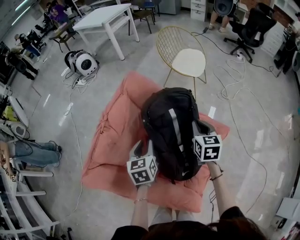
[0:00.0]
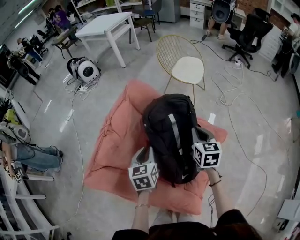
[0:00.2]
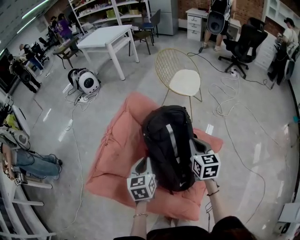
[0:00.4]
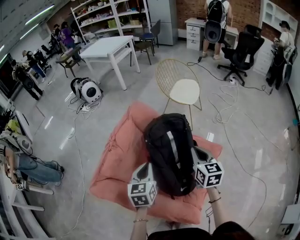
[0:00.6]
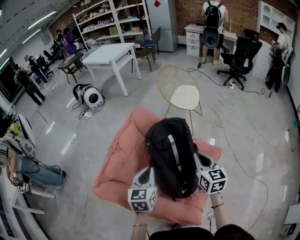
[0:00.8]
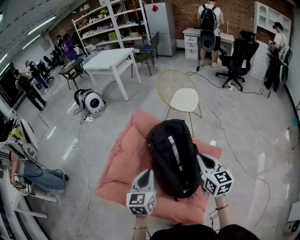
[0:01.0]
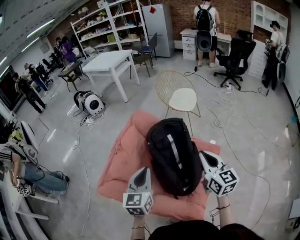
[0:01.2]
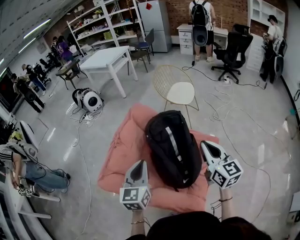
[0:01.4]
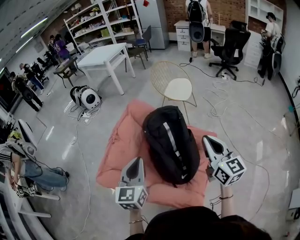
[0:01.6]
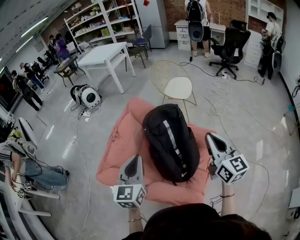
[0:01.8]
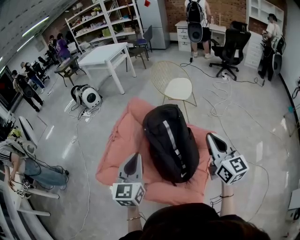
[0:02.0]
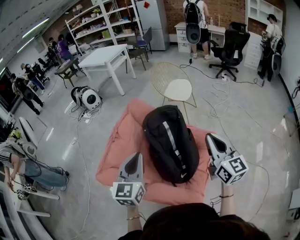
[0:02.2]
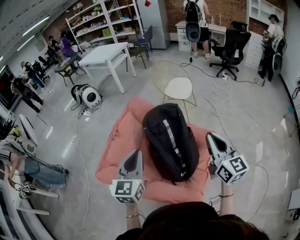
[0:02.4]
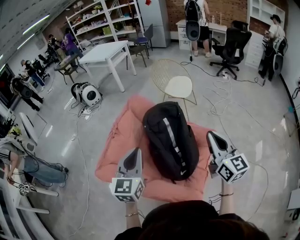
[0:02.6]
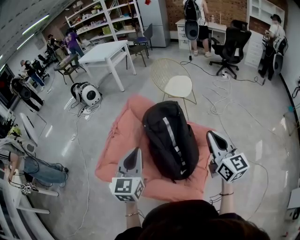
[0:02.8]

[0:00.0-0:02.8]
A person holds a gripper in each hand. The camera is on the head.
0:00.0 to 0:01.4: The two grippers go roughly 25 cm upward and backward. The left gripper turns by some 30 degrees, and closes. Meanwhile the right gripper changes its angle by roughly 30 degrees.
0:01.4 to 0:02.8: The right gripper changes place by some 5 cm.

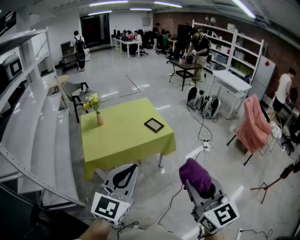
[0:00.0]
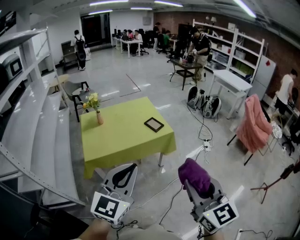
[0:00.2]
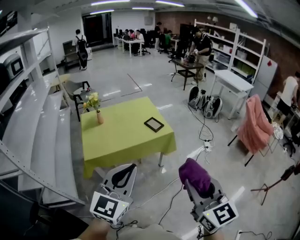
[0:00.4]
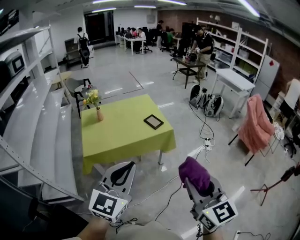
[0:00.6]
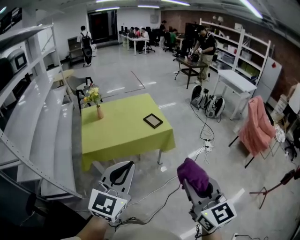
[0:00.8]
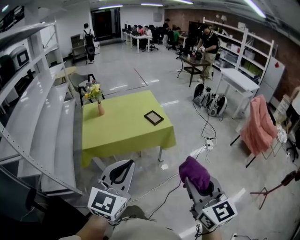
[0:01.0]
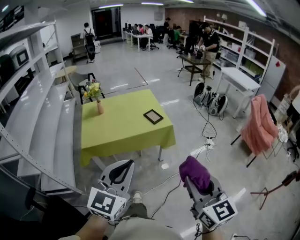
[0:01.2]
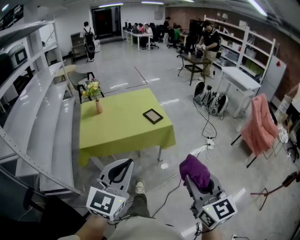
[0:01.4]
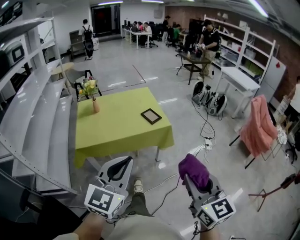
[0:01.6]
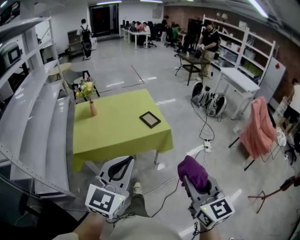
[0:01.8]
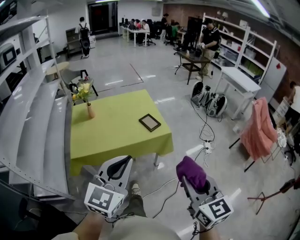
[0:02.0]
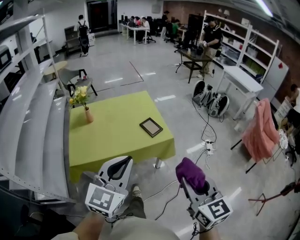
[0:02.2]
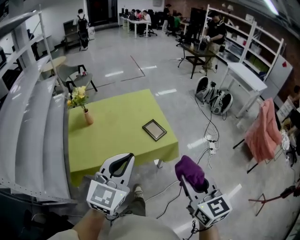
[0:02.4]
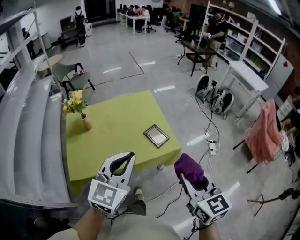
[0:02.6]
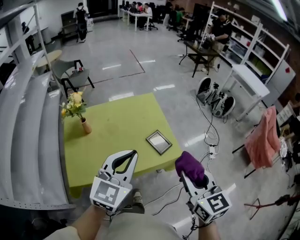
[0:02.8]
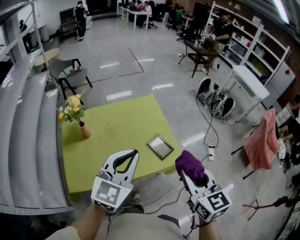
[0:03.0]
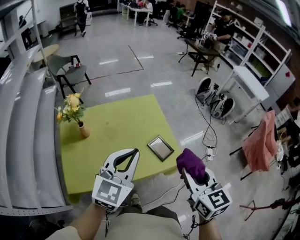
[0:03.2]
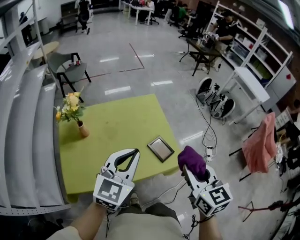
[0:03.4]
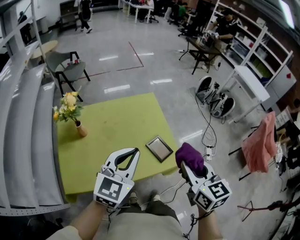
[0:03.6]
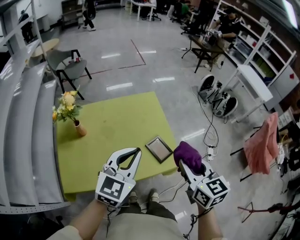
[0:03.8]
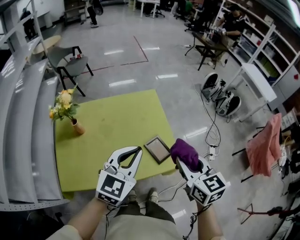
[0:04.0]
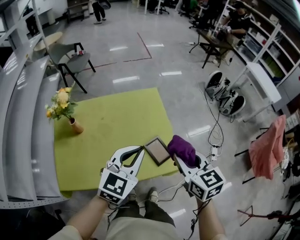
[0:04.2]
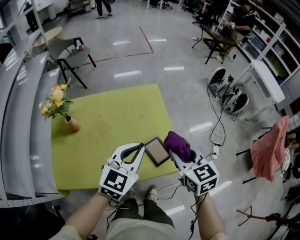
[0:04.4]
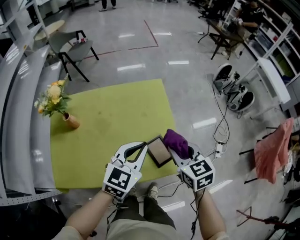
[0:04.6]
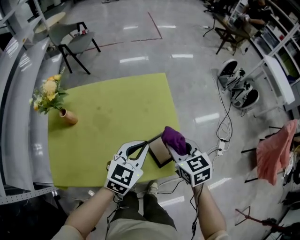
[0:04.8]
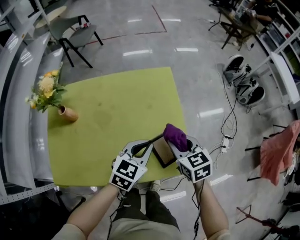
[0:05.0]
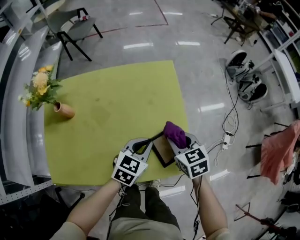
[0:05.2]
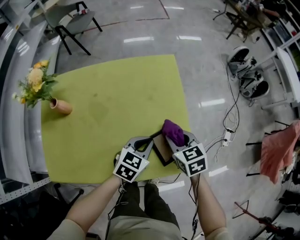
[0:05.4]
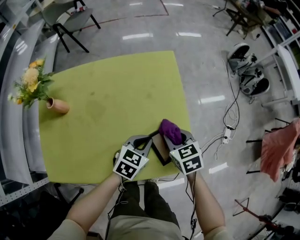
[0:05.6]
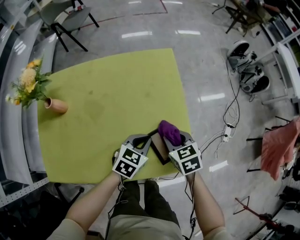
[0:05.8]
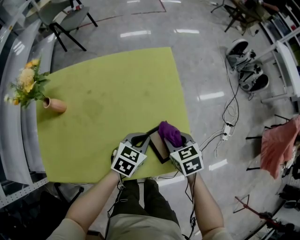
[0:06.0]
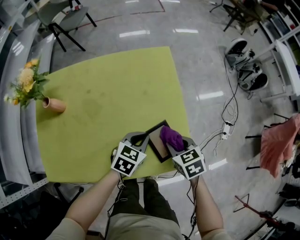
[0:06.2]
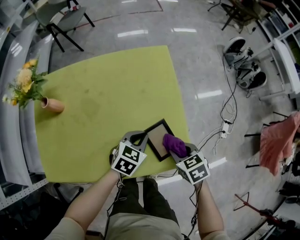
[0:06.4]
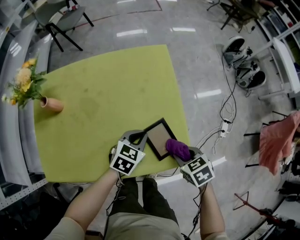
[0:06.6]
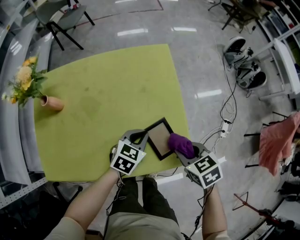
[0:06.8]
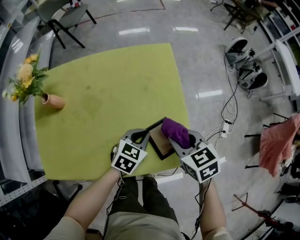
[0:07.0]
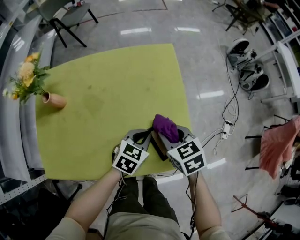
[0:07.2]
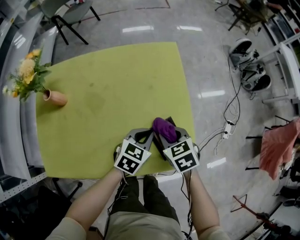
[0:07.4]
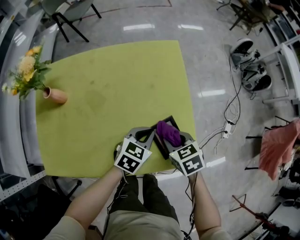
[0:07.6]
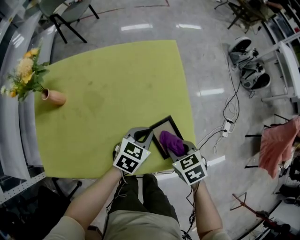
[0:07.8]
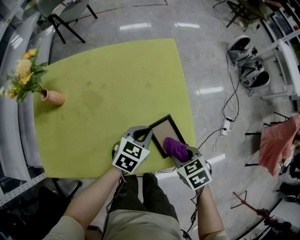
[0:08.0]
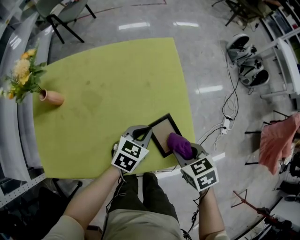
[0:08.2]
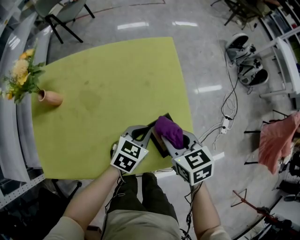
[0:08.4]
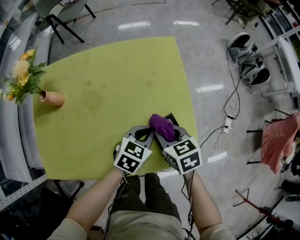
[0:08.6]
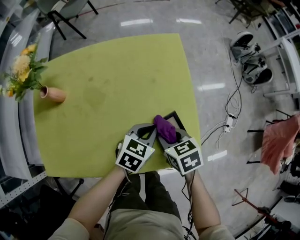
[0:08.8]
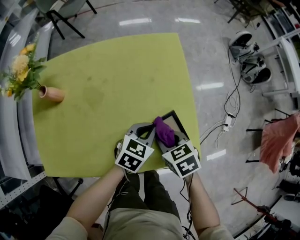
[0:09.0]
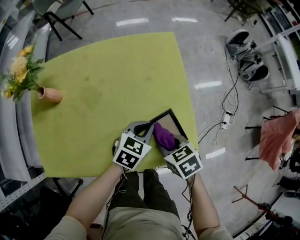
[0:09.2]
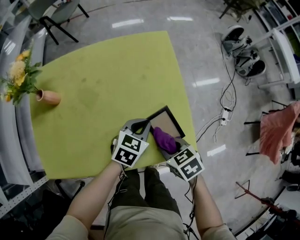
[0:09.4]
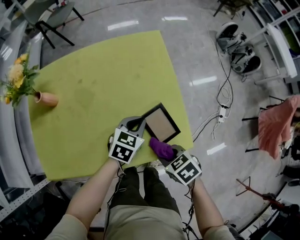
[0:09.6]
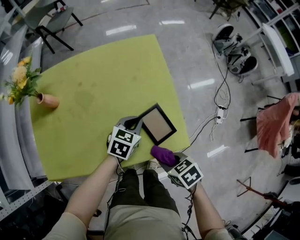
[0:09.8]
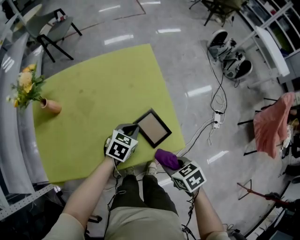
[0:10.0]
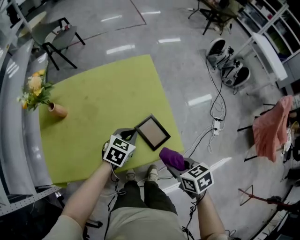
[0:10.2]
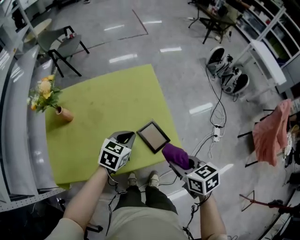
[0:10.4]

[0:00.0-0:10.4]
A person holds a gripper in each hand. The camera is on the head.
0:00.0 to 0:01.4: The left gripper shifts approximately 5 cm to the right; the right gripper is displaced to the right and downward by roughly 10 cm.
0:01.4 to 0:03.0: Both grippers are carried forward, approximately 50 cm.
0:03.0 to 0:04.4: The left gripper travels forward, downward and to the right by about 20 cm; the right gripper travels forward and downward by roughly 25 cm.
0:04.4 to 0:06.0: Both grippers travel together downward, roughly 25 cm. The left gripper turns by some 30 degrees; the right gripper swivels some 30 degrees.
0:06.0 to 0:07.4: The right gripper goes backward and returns, about 10 cm each way.
0:07.4 to 0:09.0: The right gripper moves forward and backward over approximately 10 cm, changing direction 2 times.
0:09.0 to 0:10.4: The right gripper goes approximately 20 cm upward, backward and to the right, and swivels roughly 20 degrees. The left gripper goes some 10 cm upward.

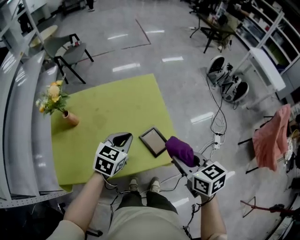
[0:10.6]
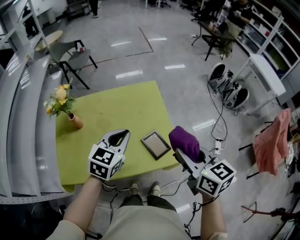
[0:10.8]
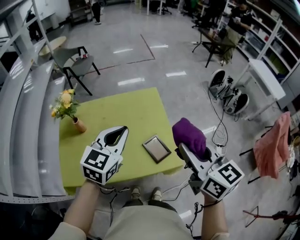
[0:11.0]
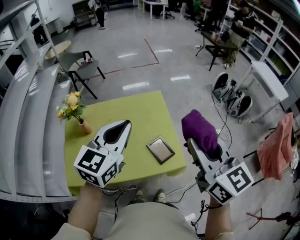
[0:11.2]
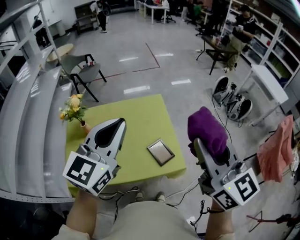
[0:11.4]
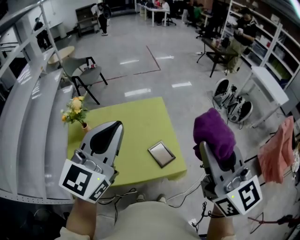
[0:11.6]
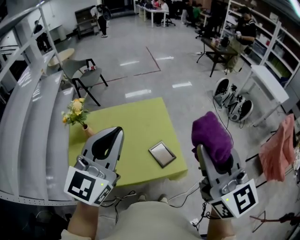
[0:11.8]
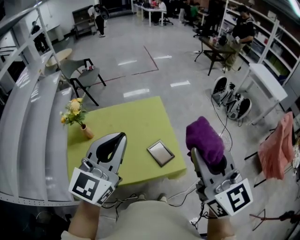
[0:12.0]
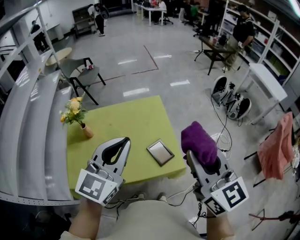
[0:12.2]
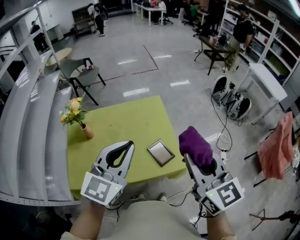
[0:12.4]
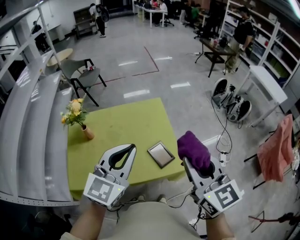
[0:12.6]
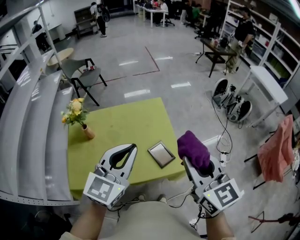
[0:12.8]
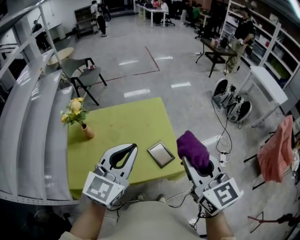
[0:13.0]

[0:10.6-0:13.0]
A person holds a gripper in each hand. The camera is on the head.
0:10.6 to 0:11.8: Both grippers travel together upward, approximately 30 cm. The left gripper tilts its fingers approximately 40 degrees upward, while the right gripper tilts its fingers about 40 degrees upward.
0:11.8 to 0:13.0: The grippers both shift downward by about 10 cm.

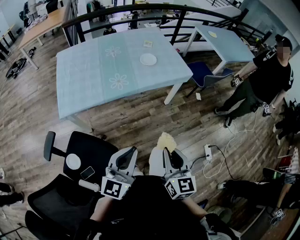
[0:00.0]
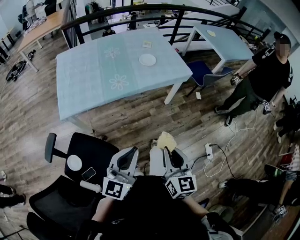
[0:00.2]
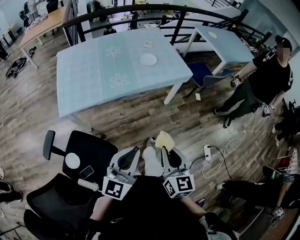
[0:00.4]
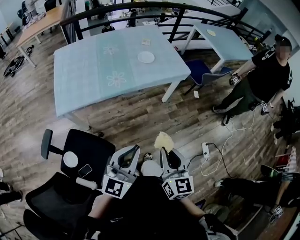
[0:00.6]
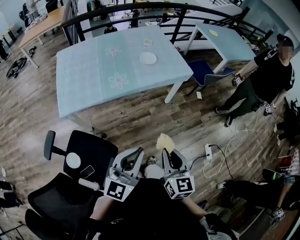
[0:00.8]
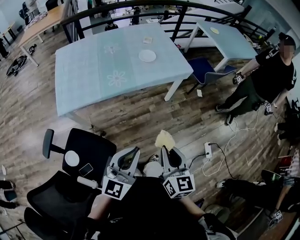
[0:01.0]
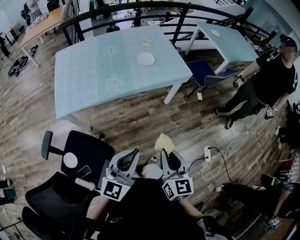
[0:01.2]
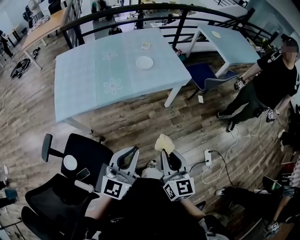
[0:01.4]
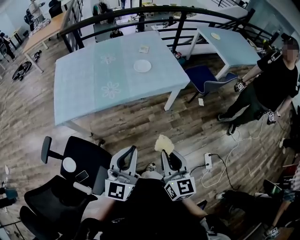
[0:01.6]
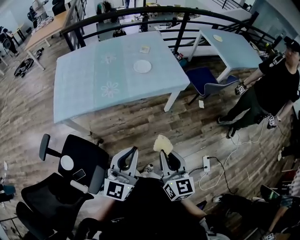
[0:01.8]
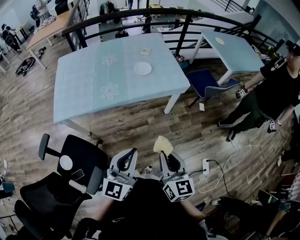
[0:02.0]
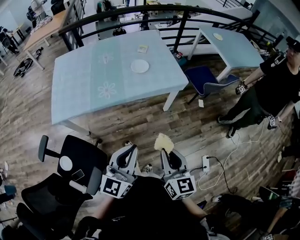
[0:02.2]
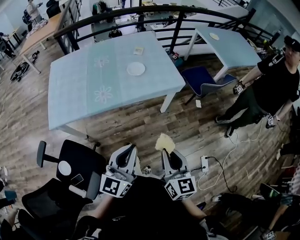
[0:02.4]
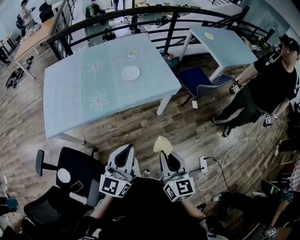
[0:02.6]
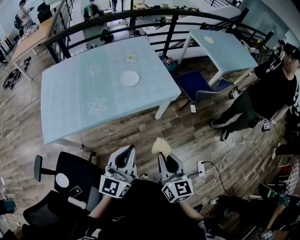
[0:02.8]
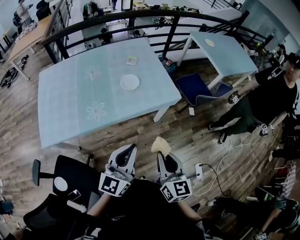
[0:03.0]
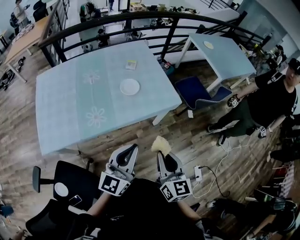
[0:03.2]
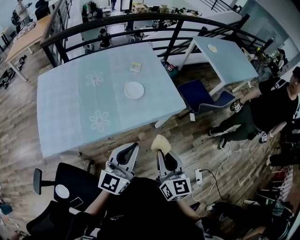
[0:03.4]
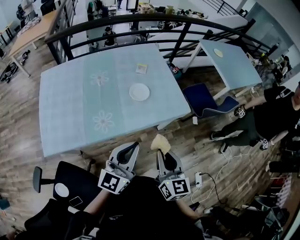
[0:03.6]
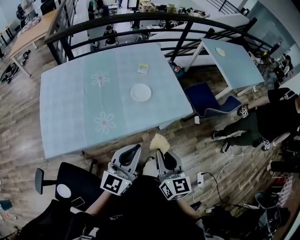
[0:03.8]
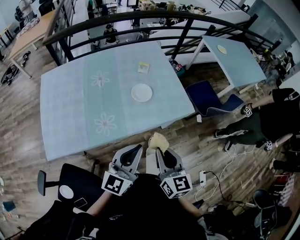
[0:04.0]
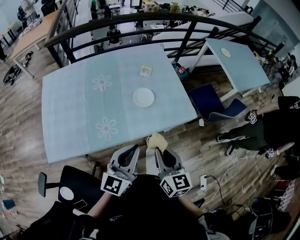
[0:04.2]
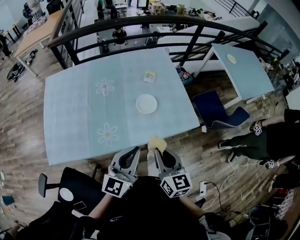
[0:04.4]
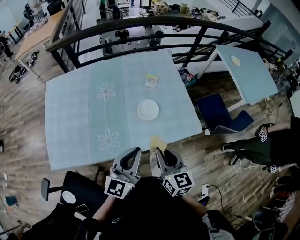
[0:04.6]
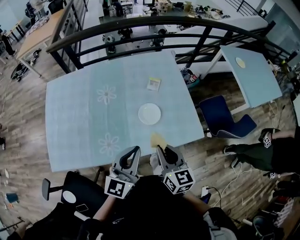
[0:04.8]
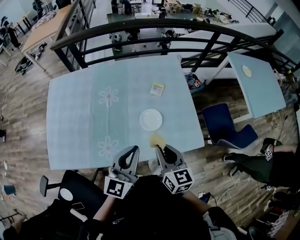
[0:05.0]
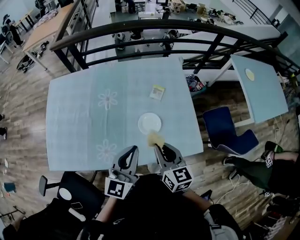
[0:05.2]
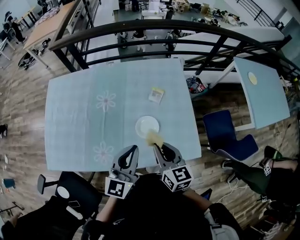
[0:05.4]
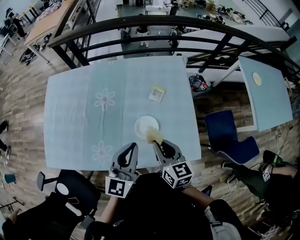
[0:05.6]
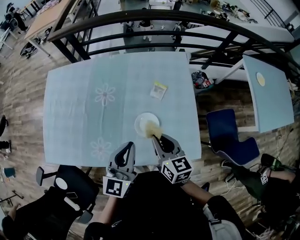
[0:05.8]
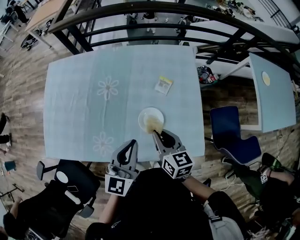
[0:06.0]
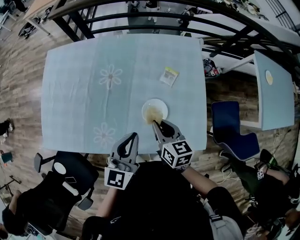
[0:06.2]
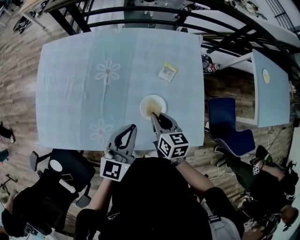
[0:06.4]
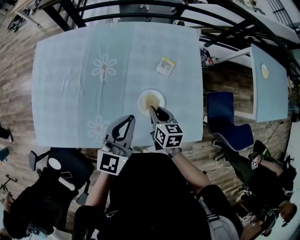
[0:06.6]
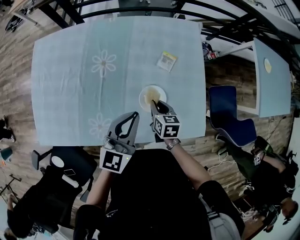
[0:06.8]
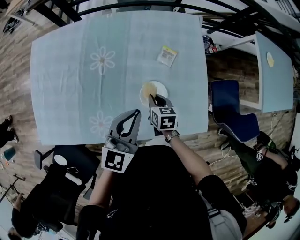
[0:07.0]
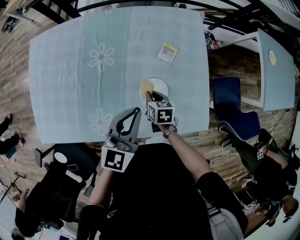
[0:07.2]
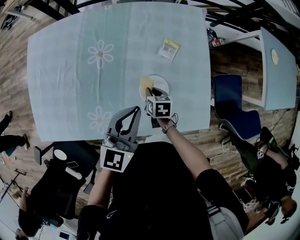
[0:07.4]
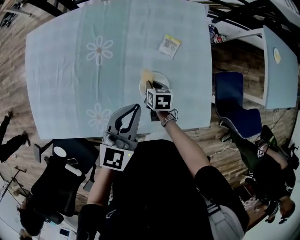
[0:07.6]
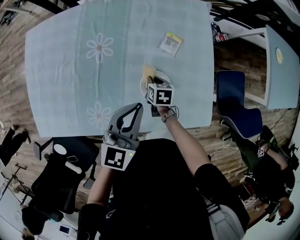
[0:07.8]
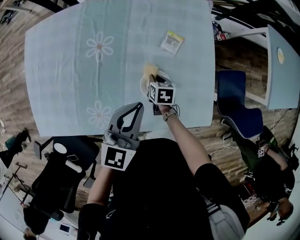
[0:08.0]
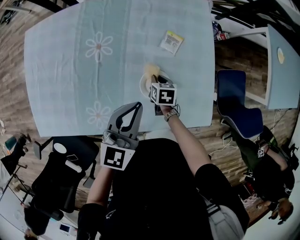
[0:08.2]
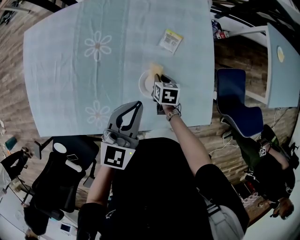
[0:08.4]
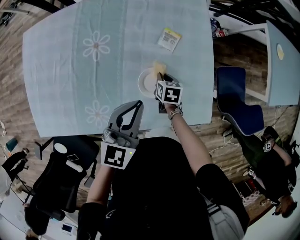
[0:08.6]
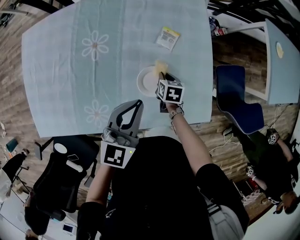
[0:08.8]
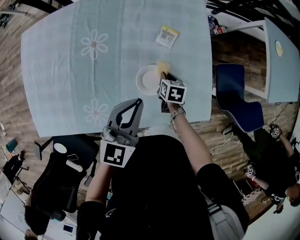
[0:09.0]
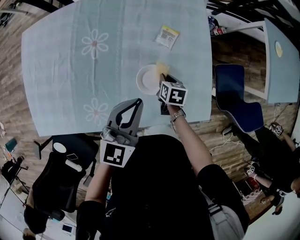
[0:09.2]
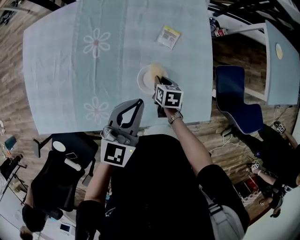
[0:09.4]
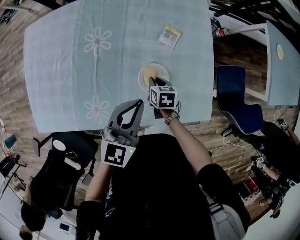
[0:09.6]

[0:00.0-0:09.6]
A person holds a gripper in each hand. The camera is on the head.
0:00.0 to 0:01.6: The grippers both shift to the right and forward by roughly 10 cm.
0:01.6 to 0:03.2: The grippers both shift forward by some 20 cm.
0:03.2 to 0:04.8: The two grippers go approximately 25 cm forward.
0:04.8 to 0:06.4: The two grippers go approximately 20 cm forward and downward. The right gripper rotates about 20 degrees.
0:06.4 to 0:08.0: The left gripper ends up about 5 cm from where it was; the right gripper shifts approximately 20 cm downward, and swivels some 20 degrees.
0:08.0 to 0:09.6: The right gripper moves some 10 cm to the right and comes back.
